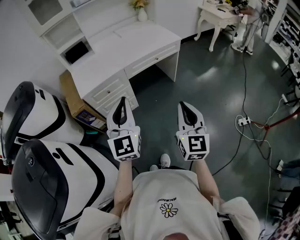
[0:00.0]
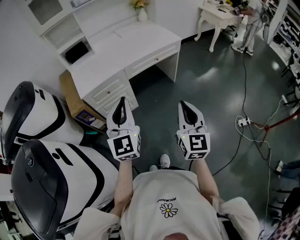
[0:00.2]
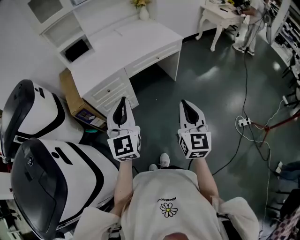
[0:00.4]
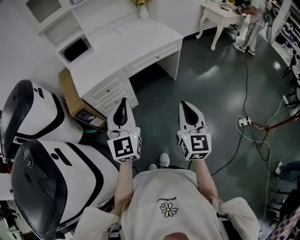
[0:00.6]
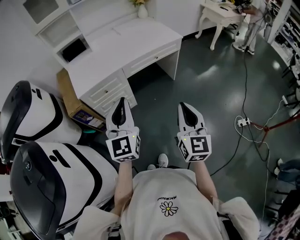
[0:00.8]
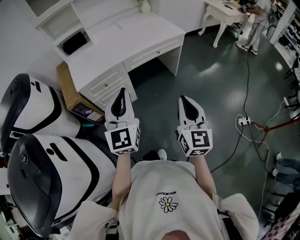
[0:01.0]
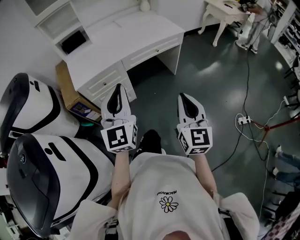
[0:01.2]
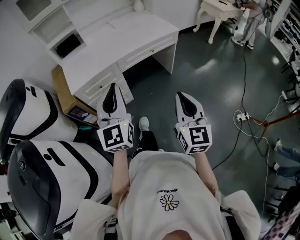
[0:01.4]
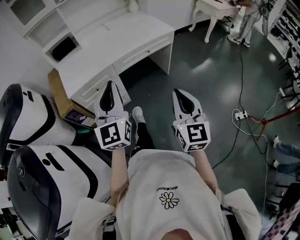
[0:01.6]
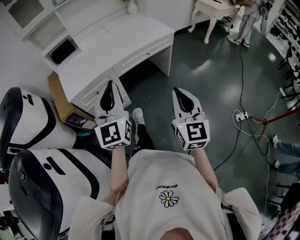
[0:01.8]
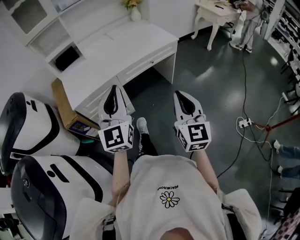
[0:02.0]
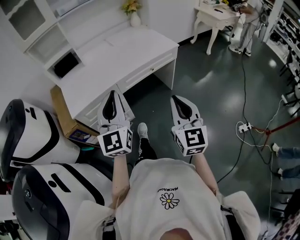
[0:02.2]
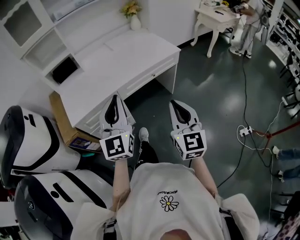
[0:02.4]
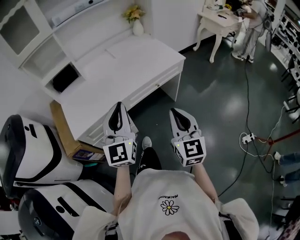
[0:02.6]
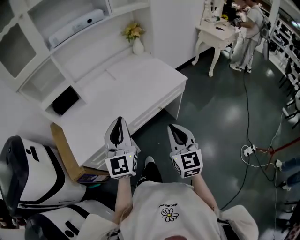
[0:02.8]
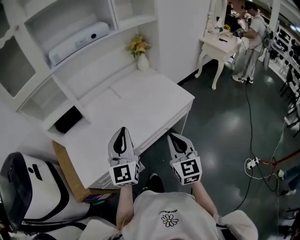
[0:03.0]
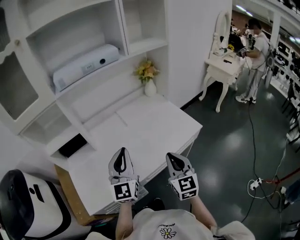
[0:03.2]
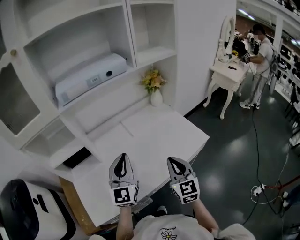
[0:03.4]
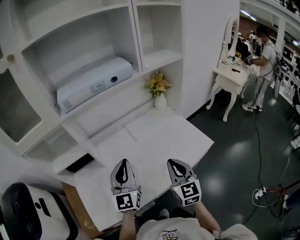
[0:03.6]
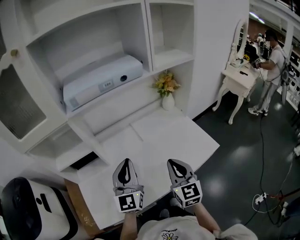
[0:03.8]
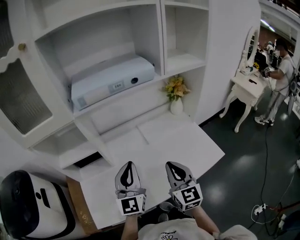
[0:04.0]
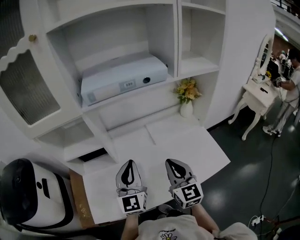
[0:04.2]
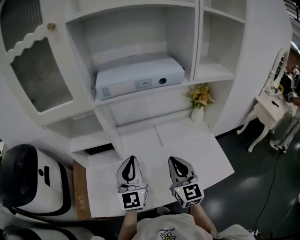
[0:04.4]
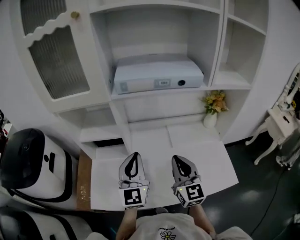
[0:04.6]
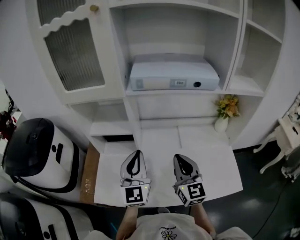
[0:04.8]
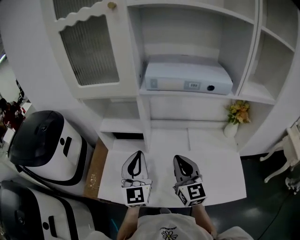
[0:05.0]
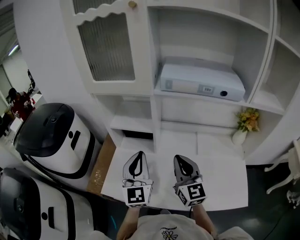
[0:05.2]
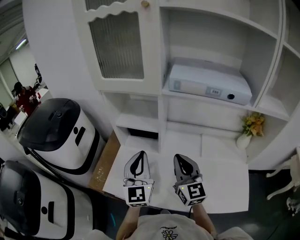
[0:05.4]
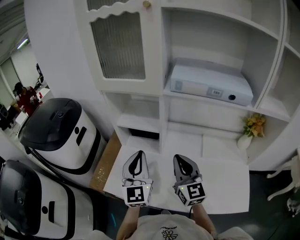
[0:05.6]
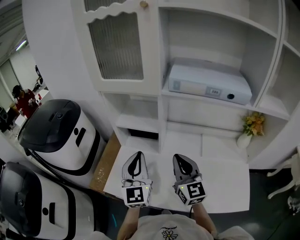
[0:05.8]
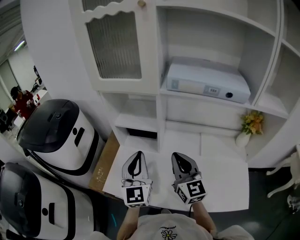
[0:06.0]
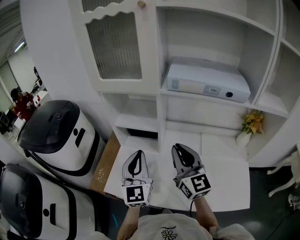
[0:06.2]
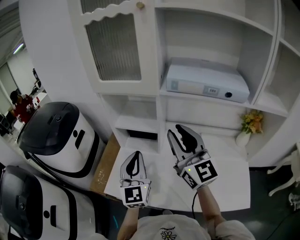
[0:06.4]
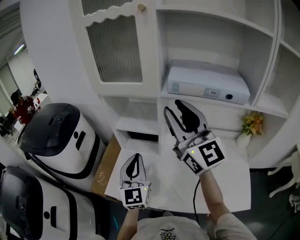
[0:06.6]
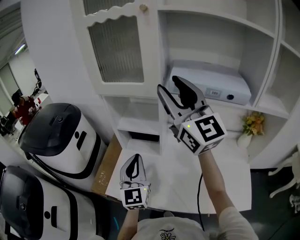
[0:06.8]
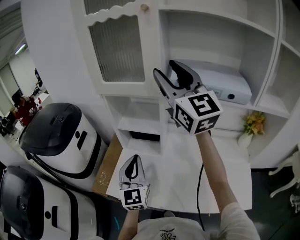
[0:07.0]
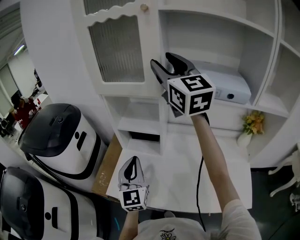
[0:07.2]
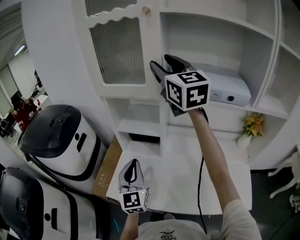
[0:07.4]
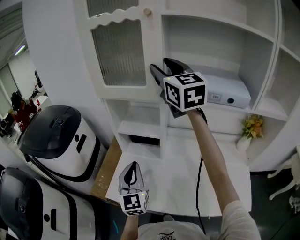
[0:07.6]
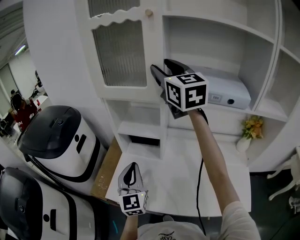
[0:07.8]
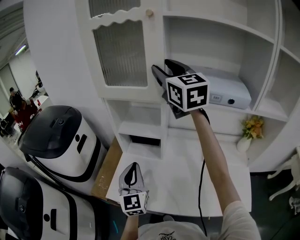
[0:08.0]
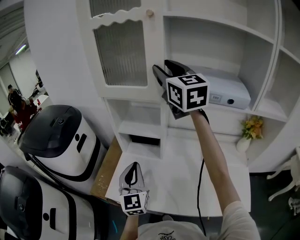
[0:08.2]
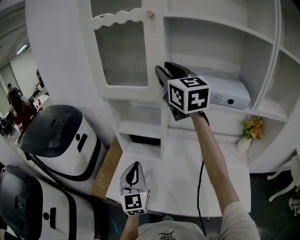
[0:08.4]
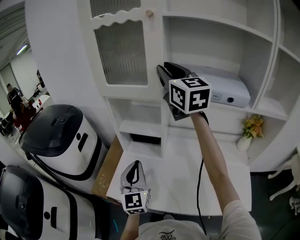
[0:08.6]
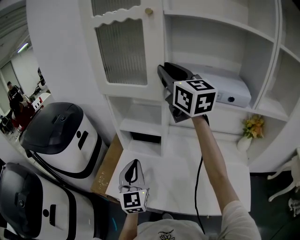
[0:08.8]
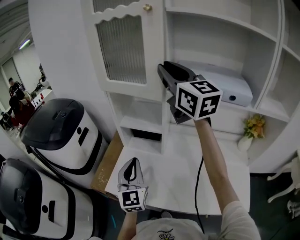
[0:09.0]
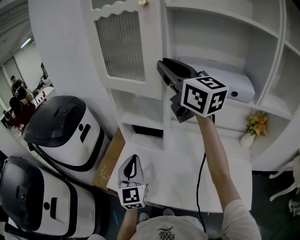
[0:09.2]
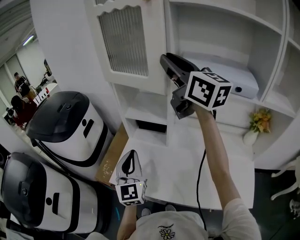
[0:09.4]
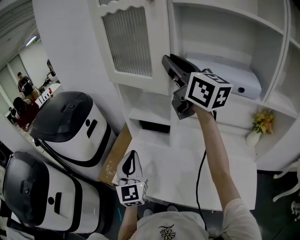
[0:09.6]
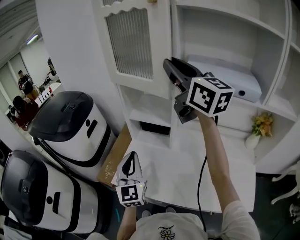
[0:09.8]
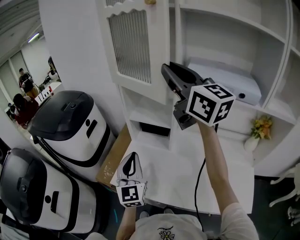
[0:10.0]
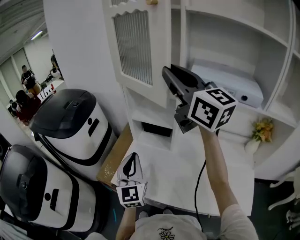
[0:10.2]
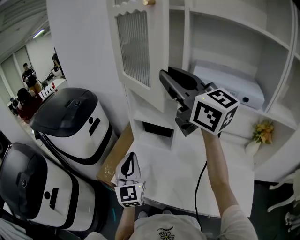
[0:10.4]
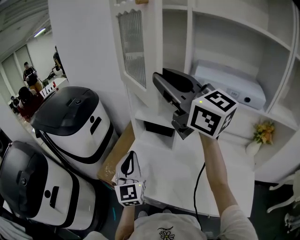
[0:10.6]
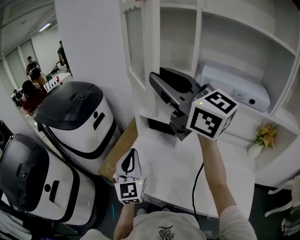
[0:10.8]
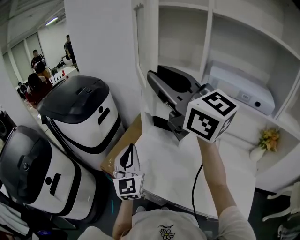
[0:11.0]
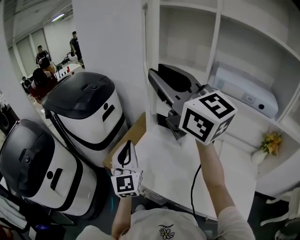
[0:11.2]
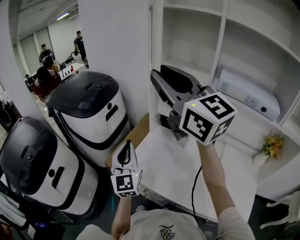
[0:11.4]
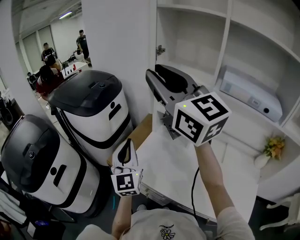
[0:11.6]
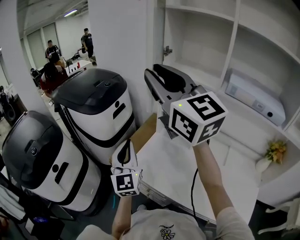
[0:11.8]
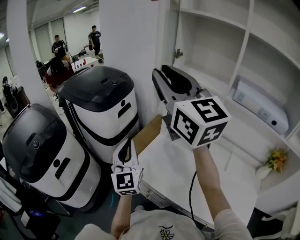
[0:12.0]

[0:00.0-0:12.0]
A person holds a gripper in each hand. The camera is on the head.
0:00.0 to 0:01.6: The two grippers go roughly 5 cm forward.
0:01.6 to 0:03.0: Both grippers travel together forward, some 35 cm.
0:03.0 to 0:04.4: The two grippers go roughly 25 cm forward and to the left. The right gripper turns by some 30 degrees; the left gripper swivels roughly 20 degrees.
0:04.4 to 0:06.0: The left gripper moves some 15 cm, and changes its angle by some 30 degrees, while the right gripper shifts by roughly 15 cm, and rotates about 30 degrees.
0:06.0 to 0:07.6: The right gripper is displaced upward and forward by some 35 cm, and opens up.
0:07.6 to 0:09.0: The right gripper closes up.
0:09.0 to 0:10.4: The right gripper goes roughly 10 cm to the left and backward. Meanwhile the left gripper goes approximately 5 cm to the left.
0:10.4 to 0:12.0: Both grippers move to the left, about 15 cm.

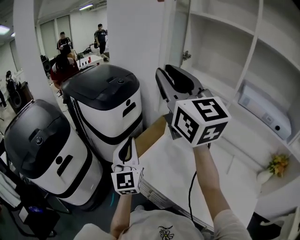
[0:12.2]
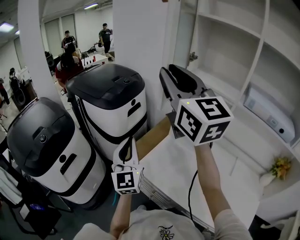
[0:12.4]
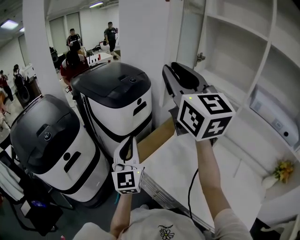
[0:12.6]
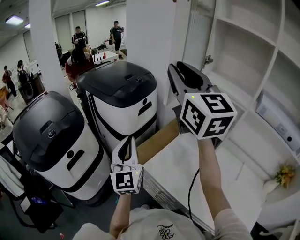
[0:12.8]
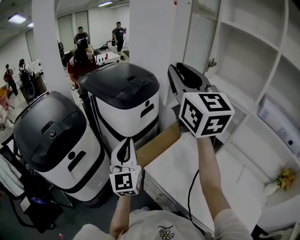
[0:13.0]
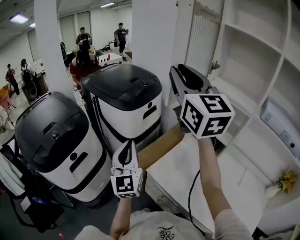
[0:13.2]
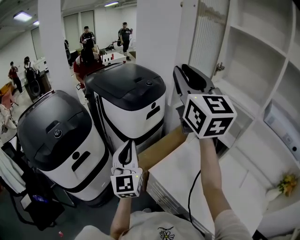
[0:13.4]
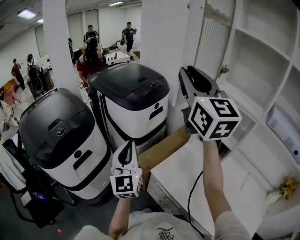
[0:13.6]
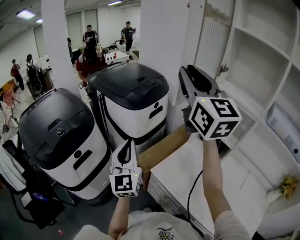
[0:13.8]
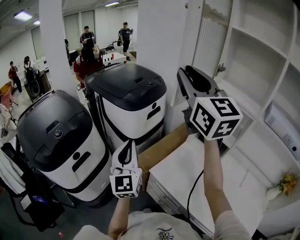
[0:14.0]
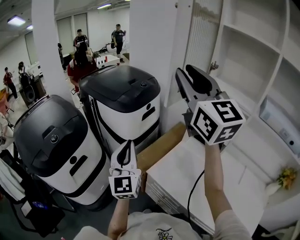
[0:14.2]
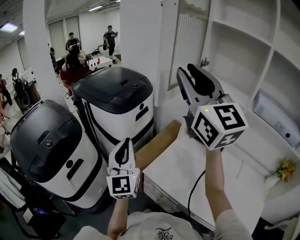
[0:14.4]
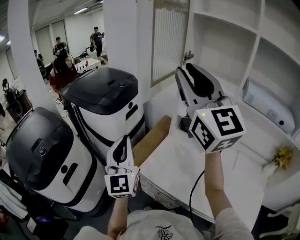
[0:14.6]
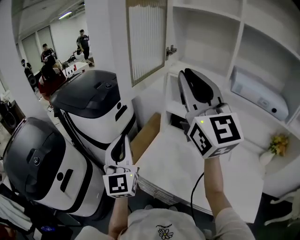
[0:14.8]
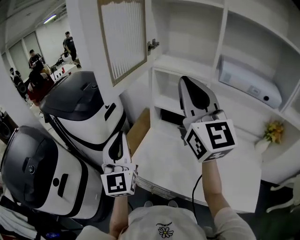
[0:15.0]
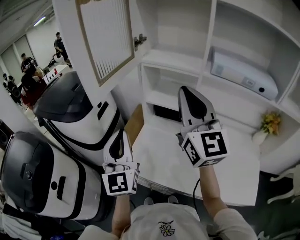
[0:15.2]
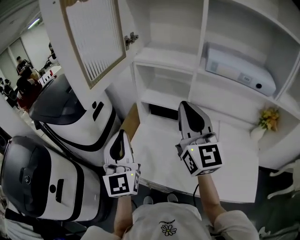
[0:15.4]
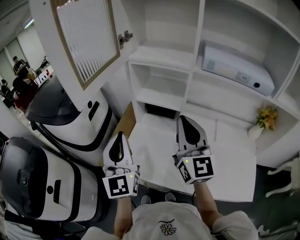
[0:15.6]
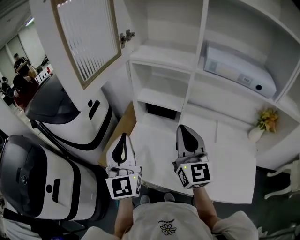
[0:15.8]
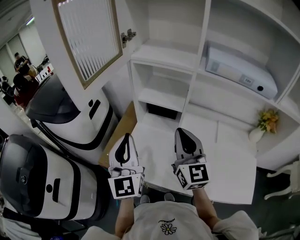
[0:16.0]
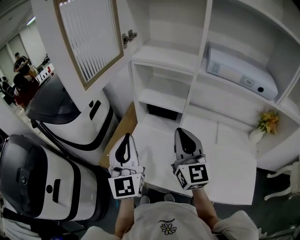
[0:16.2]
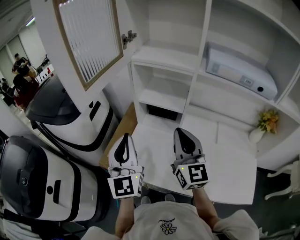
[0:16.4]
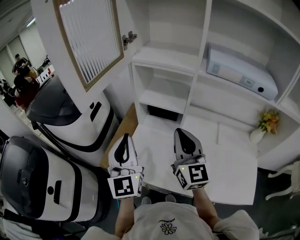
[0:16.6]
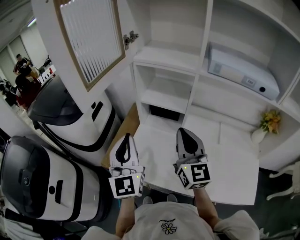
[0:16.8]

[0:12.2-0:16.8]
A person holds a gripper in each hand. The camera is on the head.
0:12.2 to 0:13.8: The left gripper moves to the left, approximately 10 cm, while the right gripper goes some 10 cm forward and to the left.
0:13.8 to 0:15.2: The left gripper moves some 20 cm, and swivels about 30 degrees. The right gripper moves some 25 cm, turns by roughly 30 degrees, and closes its fingers.
0:15.2 to 0:16.8: The left gripper moves some 5 cm, while the right gripper heads downward, covering approximately 15 cm.

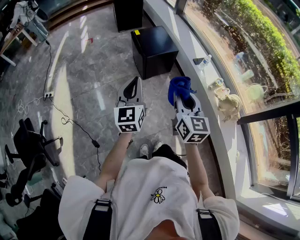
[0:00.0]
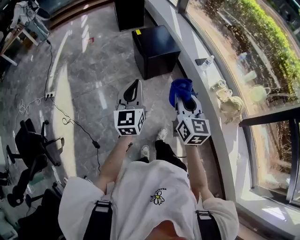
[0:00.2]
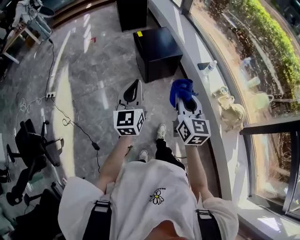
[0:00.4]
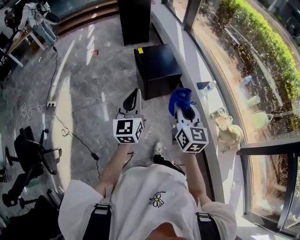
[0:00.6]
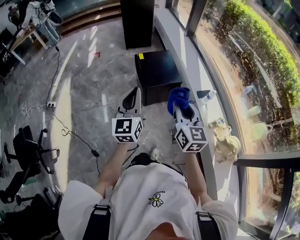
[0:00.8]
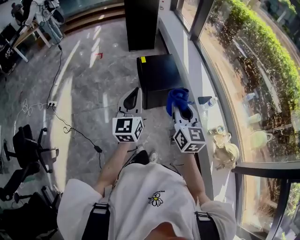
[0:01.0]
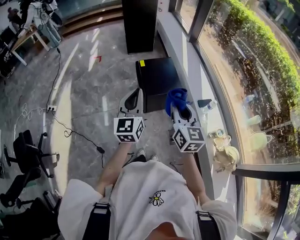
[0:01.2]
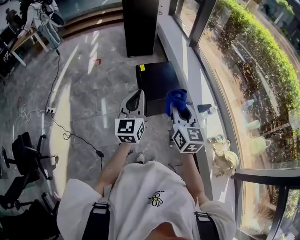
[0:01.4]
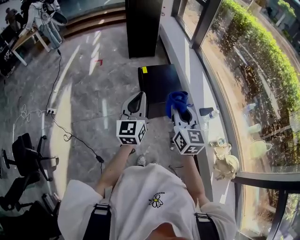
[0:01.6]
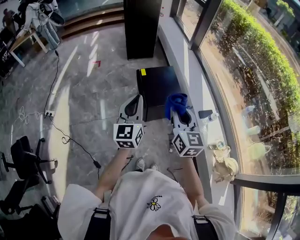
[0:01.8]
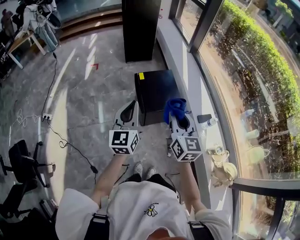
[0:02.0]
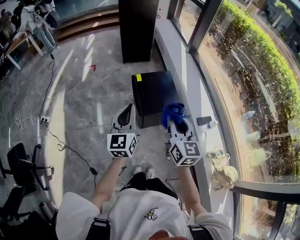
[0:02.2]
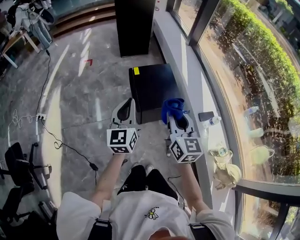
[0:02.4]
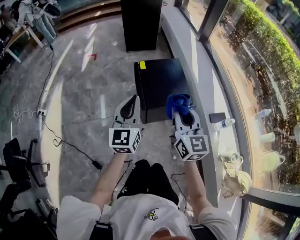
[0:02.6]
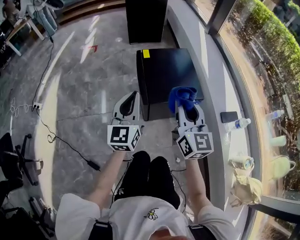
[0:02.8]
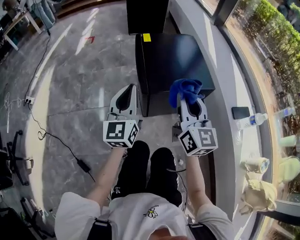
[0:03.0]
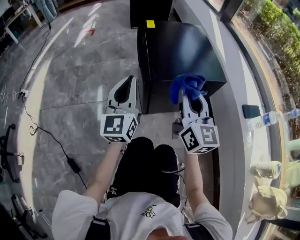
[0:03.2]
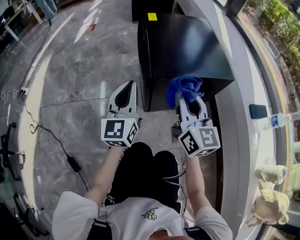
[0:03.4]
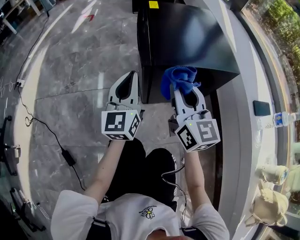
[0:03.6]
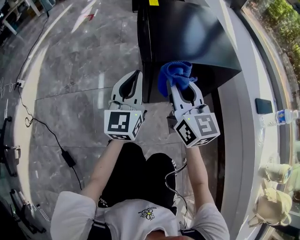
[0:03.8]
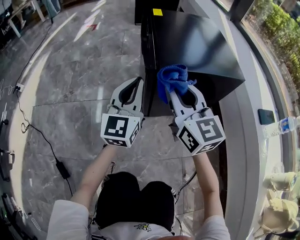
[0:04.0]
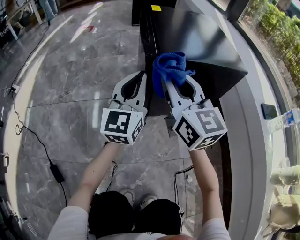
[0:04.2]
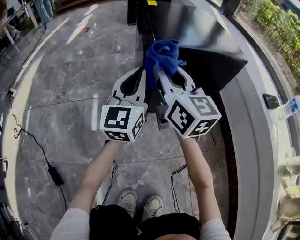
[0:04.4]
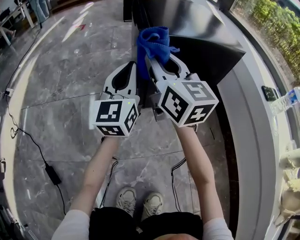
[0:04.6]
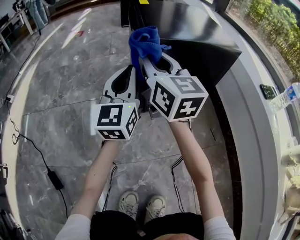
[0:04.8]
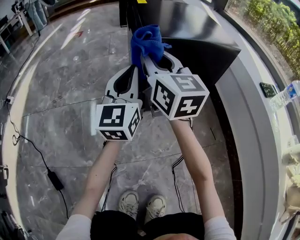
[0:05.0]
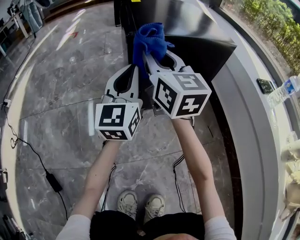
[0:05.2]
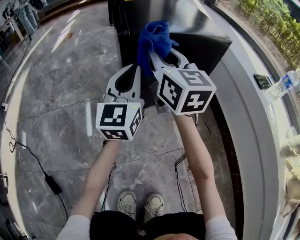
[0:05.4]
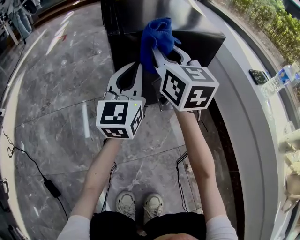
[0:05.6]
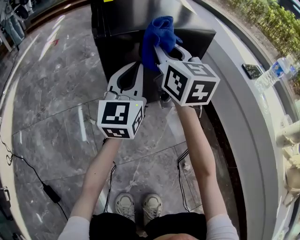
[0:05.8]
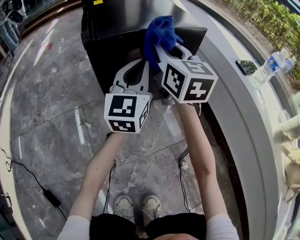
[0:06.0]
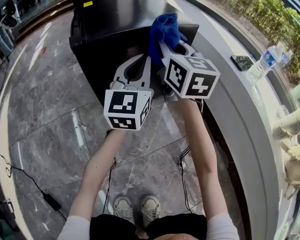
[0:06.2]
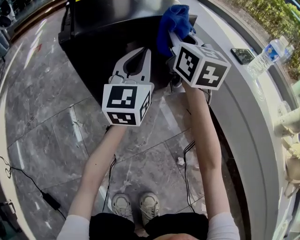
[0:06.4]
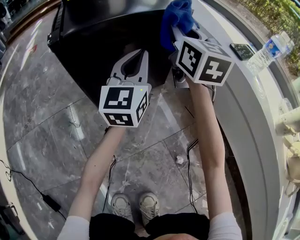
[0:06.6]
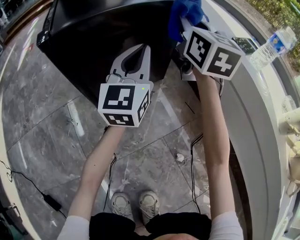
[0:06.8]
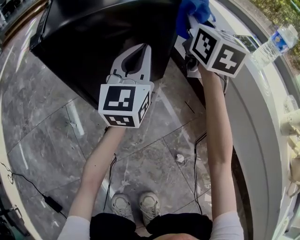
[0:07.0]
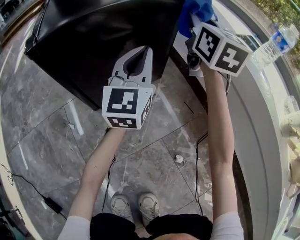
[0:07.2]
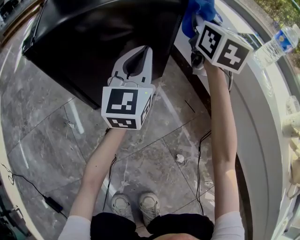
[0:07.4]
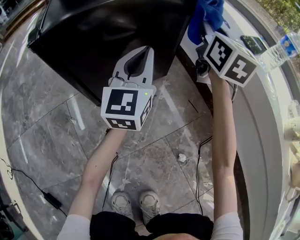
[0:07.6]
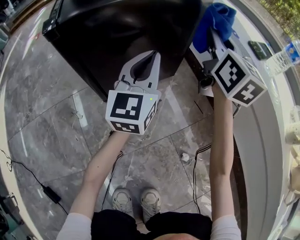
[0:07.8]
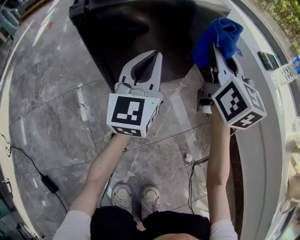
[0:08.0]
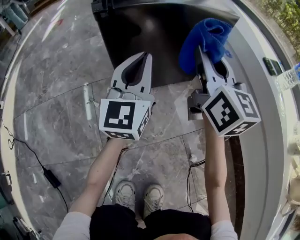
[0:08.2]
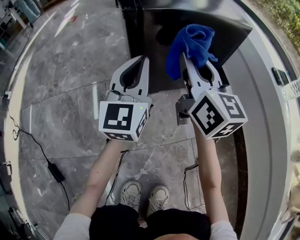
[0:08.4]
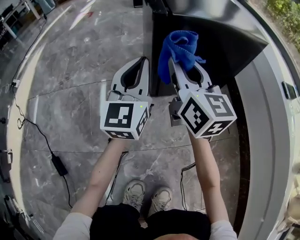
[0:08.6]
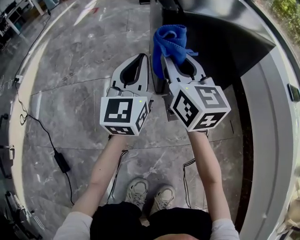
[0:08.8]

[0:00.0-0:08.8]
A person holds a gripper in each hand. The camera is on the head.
0:00.0 to 0:01.4: Both grippers move forward, about 30 cm.
0:01.4 to 0:03.0: The left gripper moves downward, some 40 cm. Meanwhile the right gripper heads downward and forward, covering some 40 cm.
0:03.0 to 0:04.4: The left gripper travels downward by roughly 20 cm. The right gripper heads downward and to the left, covering about 20 cm.
0:04.4 to 0:05.8: The grippers both shift to the right by roughly 10 cm.
0:05.8 to 0:07.4: The right gripper is displaced to the right and forward by some 25 cm, and rotates about 30 degrees, while the left gripper heads to the right, forward and downward, covering about 15 cm.
0:07.4 to 0:08.8: The left gripper changes place by roughly 30 cm, and turns by roughly 30 degrees, while the right gripper shifts by about 40 cm, and rotates about 40 degrees.
